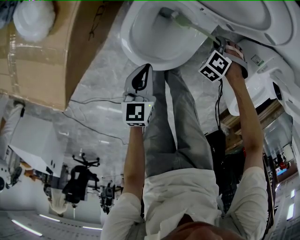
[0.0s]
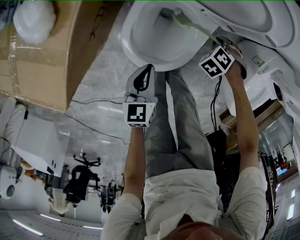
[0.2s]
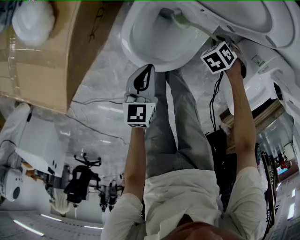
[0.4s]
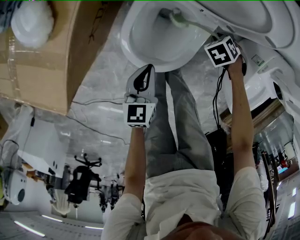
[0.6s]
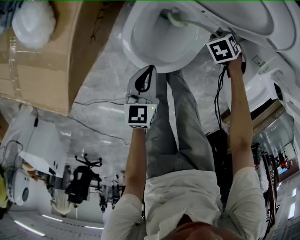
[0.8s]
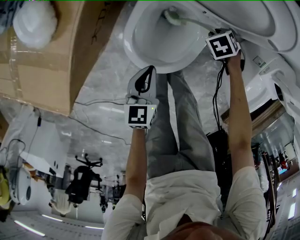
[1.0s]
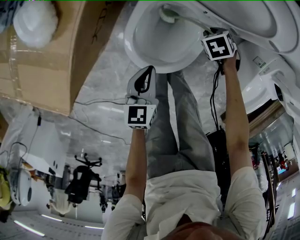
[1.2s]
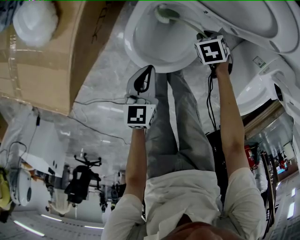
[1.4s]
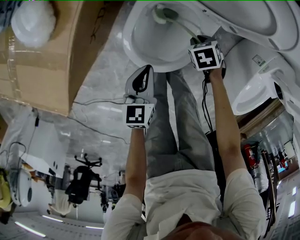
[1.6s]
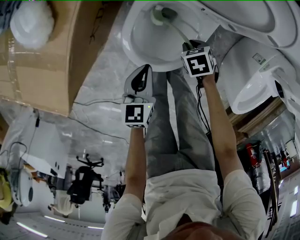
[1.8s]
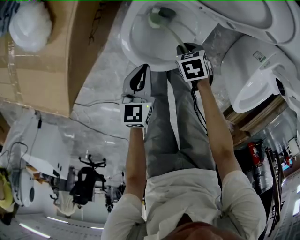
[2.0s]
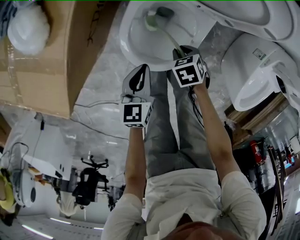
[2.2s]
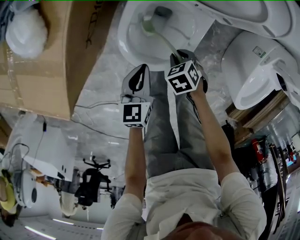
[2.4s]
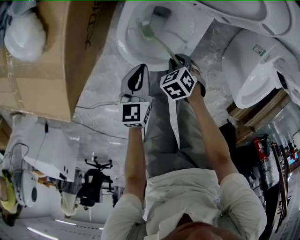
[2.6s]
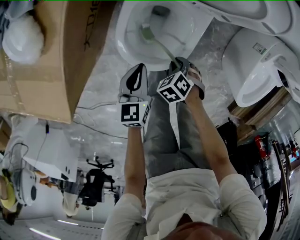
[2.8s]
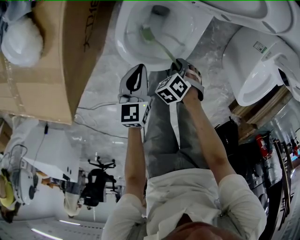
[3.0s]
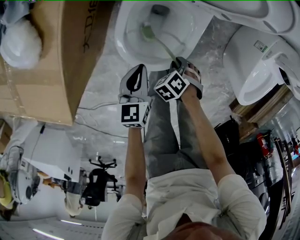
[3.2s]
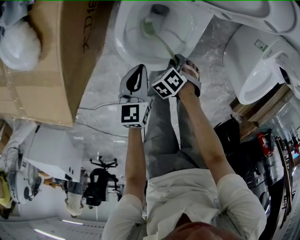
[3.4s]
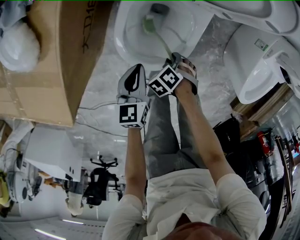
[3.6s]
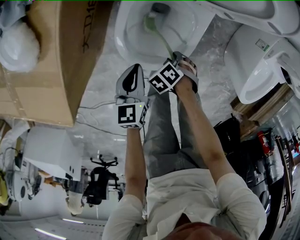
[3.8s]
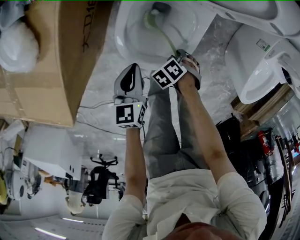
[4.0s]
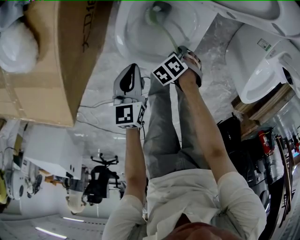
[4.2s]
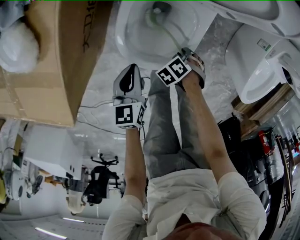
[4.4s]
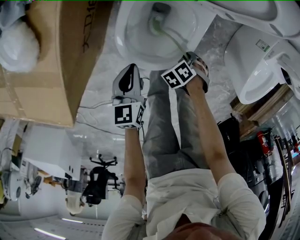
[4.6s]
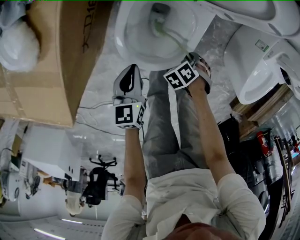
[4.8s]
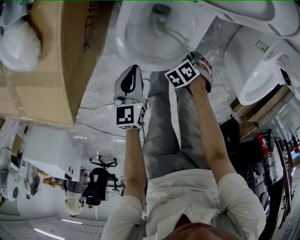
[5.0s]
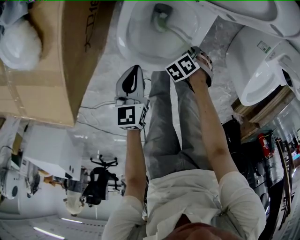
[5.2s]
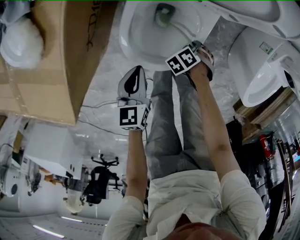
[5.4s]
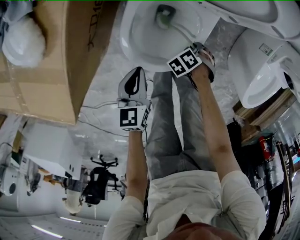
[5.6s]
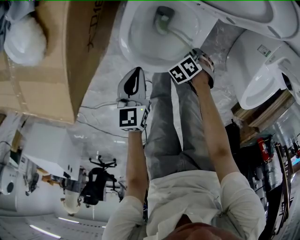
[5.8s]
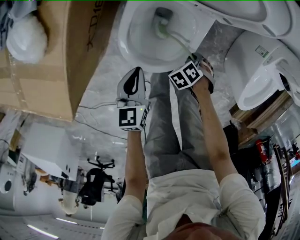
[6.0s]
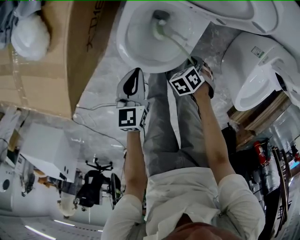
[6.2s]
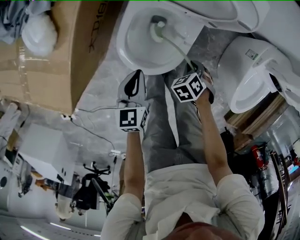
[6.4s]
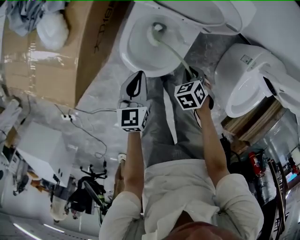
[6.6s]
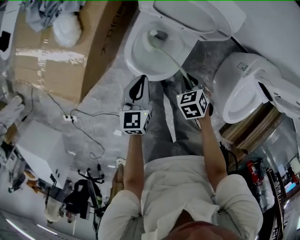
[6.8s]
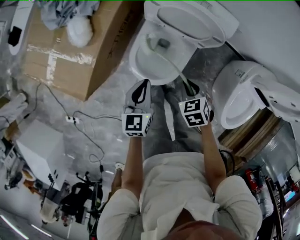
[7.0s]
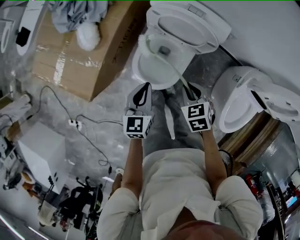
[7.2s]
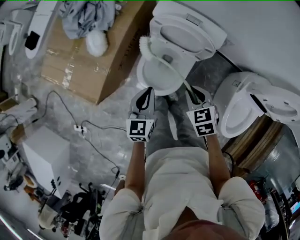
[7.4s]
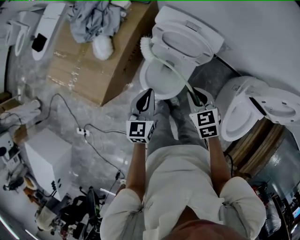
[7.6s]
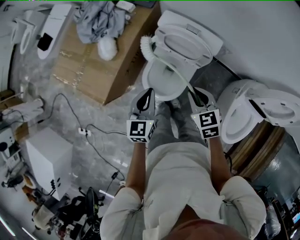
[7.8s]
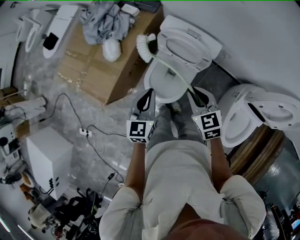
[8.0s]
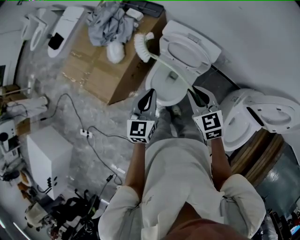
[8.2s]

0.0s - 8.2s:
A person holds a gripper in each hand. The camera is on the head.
0.0s - 1.6s: The right gripper moves roughly 10 cm, and rolls clockwise, seen from behind, by roughly 50 degrees.
1.6s - 3.2s: The right gripper moves some 15 cm.
3.2s - 5.0s: The right gripper changes place by approximately 10 cm.
5.0s - 6.6s: Both grippers move upward, approximately 15 cm. The right gripper turns by approximately 20 degrees.
6.6s - 8.2s: Both grippers move upward, some 30 cm. The right gripper tilts its fingers about 50 degrees upward.

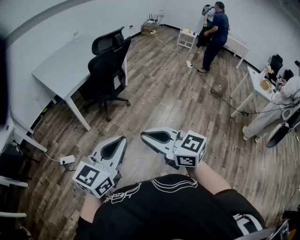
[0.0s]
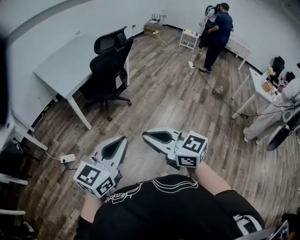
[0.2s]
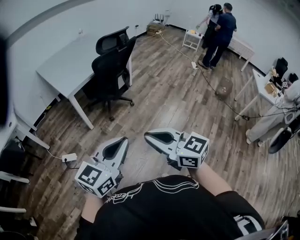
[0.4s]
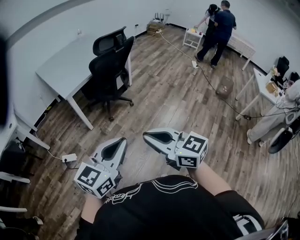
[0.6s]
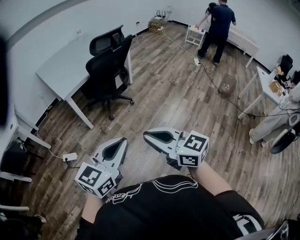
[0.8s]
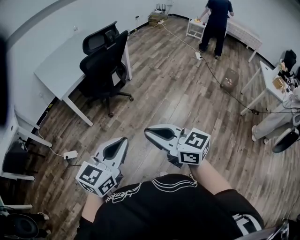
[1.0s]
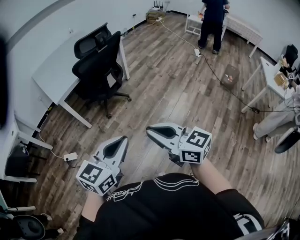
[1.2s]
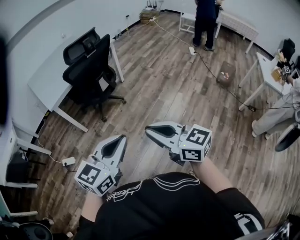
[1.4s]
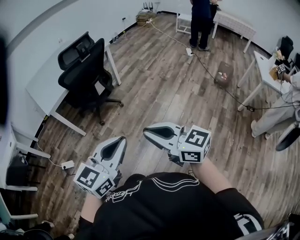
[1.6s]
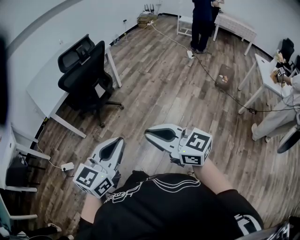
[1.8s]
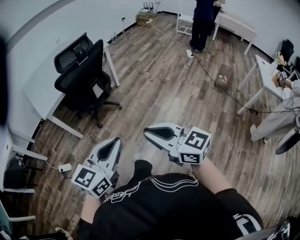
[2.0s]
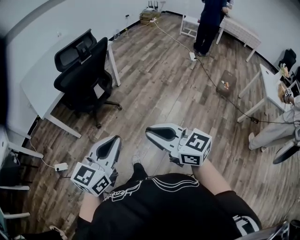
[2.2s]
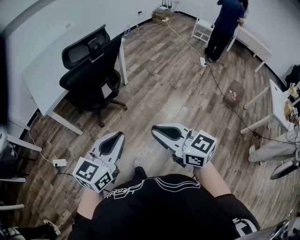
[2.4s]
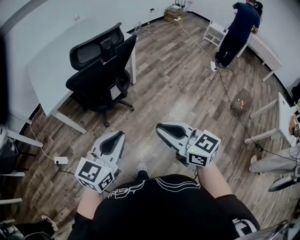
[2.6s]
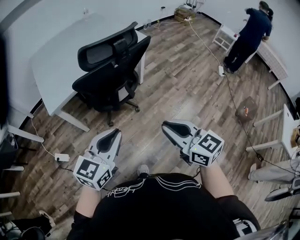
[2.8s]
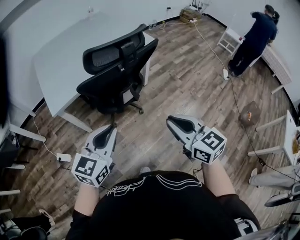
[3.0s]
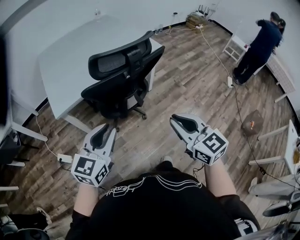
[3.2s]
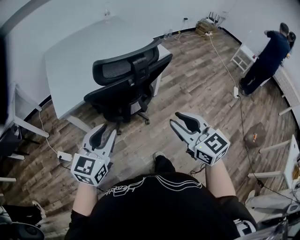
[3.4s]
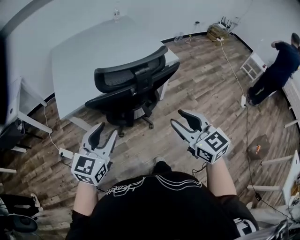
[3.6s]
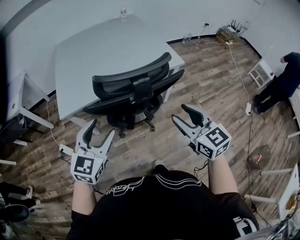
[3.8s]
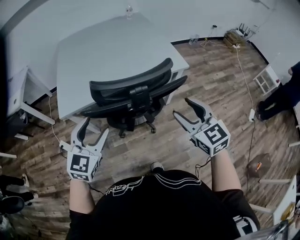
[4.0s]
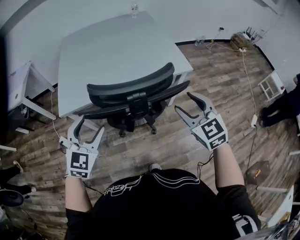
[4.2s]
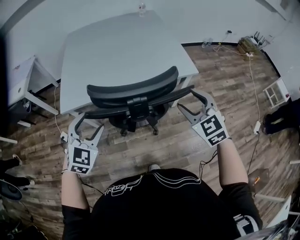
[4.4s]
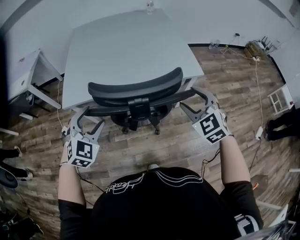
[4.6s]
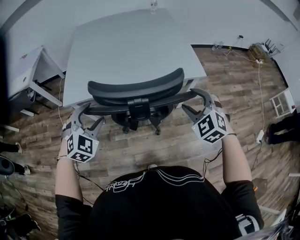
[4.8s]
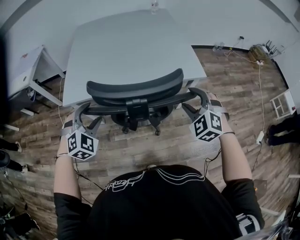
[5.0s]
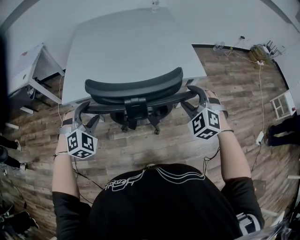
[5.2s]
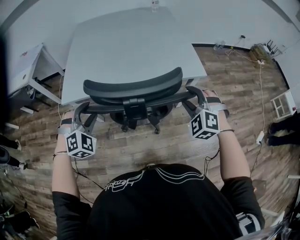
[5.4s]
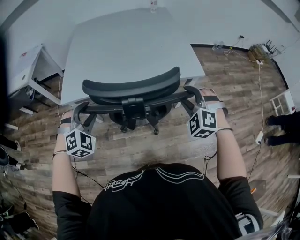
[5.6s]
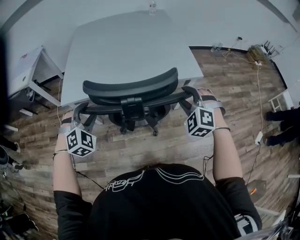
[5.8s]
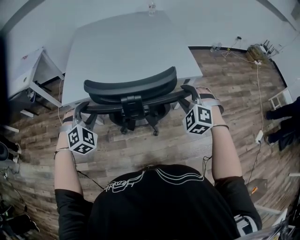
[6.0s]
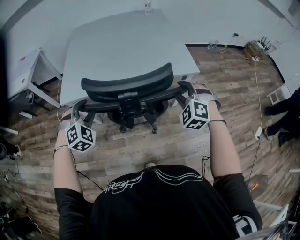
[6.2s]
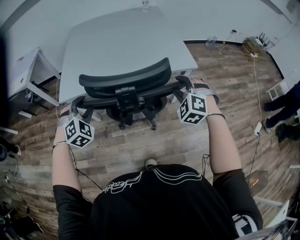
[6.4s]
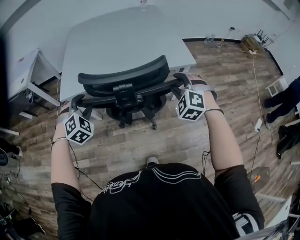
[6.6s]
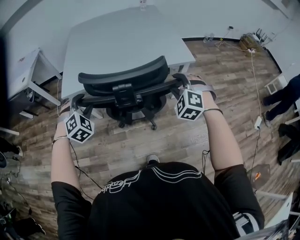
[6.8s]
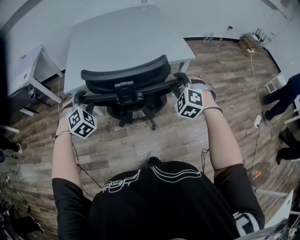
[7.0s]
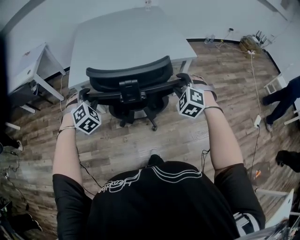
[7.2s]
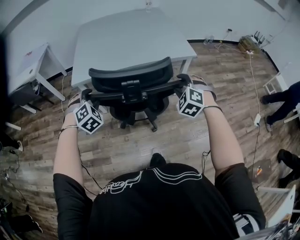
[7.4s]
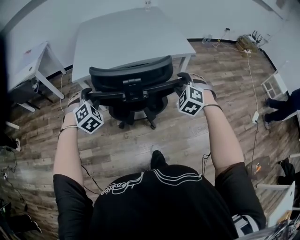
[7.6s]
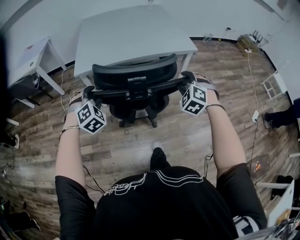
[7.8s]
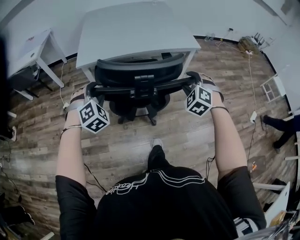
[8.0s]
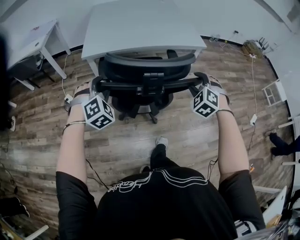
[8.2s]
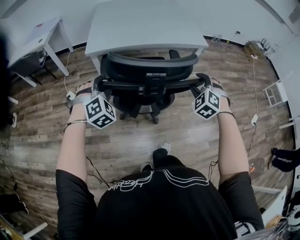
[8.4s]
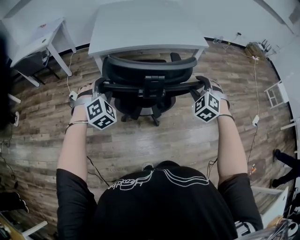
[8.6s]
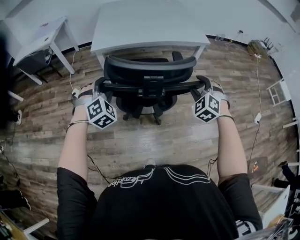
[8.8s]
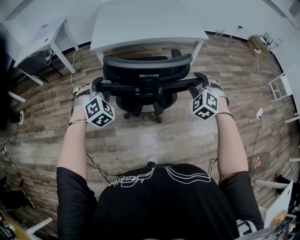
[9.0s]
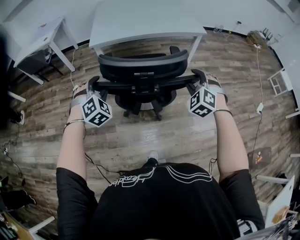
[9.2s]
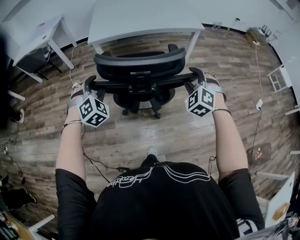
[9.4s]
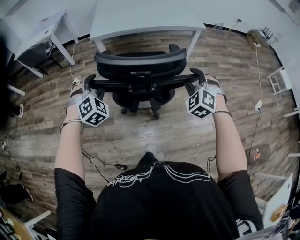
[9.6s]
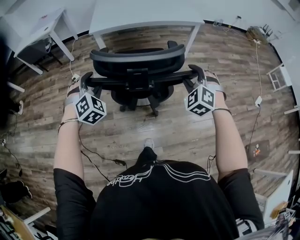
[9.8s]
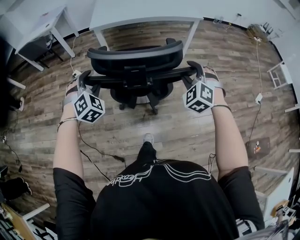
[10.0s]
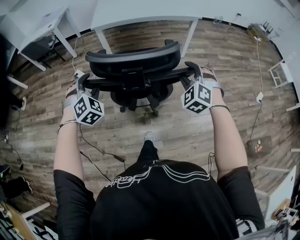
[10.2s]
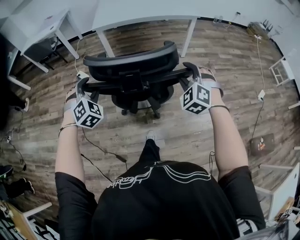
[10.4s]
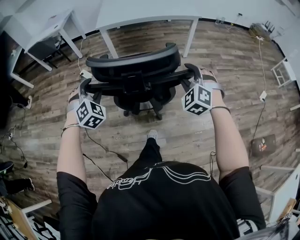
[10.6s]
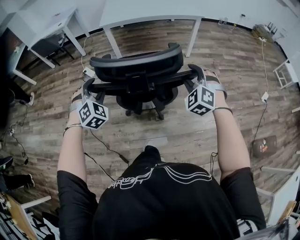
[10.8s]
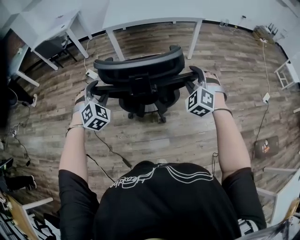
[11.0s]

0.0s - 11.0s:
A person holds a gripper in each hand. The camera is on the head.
0.0s - 1.6s: The two grippers go some 30 cm to the right.
1.6s - 3.2s: The two grippers travel together, forward, approximately 50 cm. The left gripper turns by about 30 degrees.
3.2s - 4.8s: The left gripper moves forward, roughly 20 cm, turns by some 50 degrees, and opens its fingers, while the right gripper goes approximately 35 cm forward and to the right, rolls counterclockwise, seen from behind, by approximately 50 degrees, and opens up.
4.8s - 6.2s: The grippers make only small movements.
6.2s - 7.8s: The two grippers go approximately 20 cm backward.
7.8s - 9.4s: The grippers both shift backward by some 15 cm.
9.4s - 11.0s: The two grippers go roughly 20 cm backward.

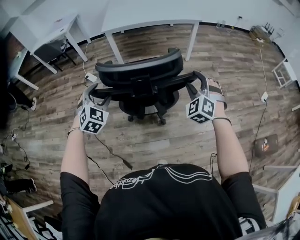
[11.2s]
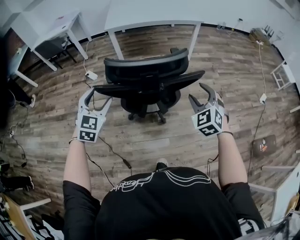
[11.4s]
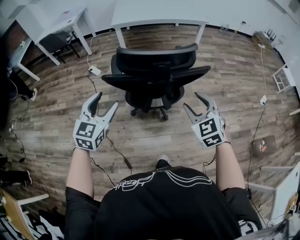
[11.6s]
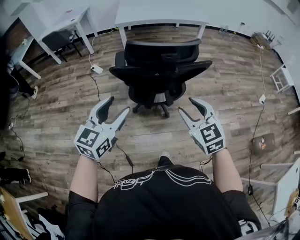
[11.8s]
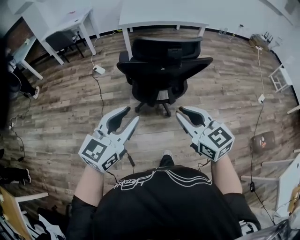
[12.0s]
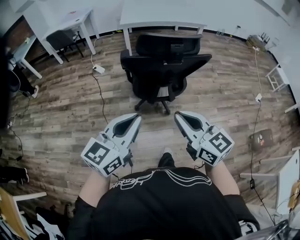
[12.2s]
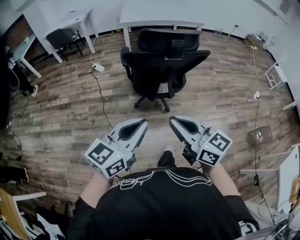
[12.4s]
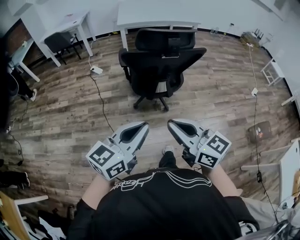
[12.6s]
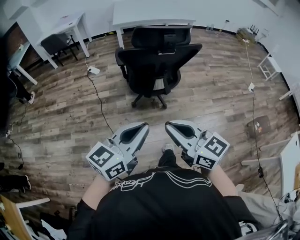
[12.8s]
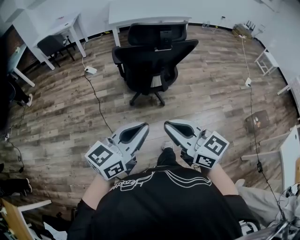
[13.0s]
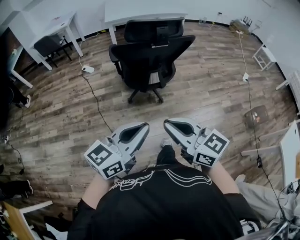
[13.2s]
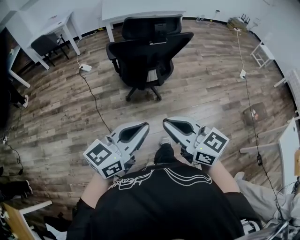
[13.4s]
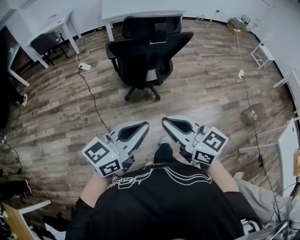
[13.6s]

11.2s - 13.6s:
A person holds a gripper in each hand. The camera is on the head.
11.2s - 12.4s: The left gripper is displaced backward by roughly 40 cm, swivels some 70 degrees, and closes. Meanwhile the right gripper is displaced backward and to the left by about 50 cm, turns by approximately 80 degrees, and closes.
12.4s - 13.6s: The two grippers go about 10 cm backward.

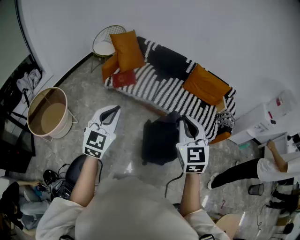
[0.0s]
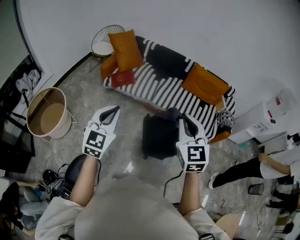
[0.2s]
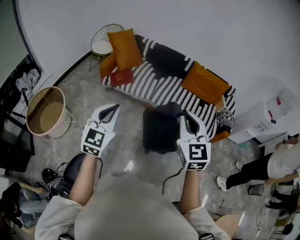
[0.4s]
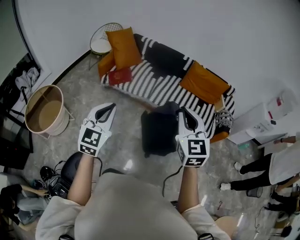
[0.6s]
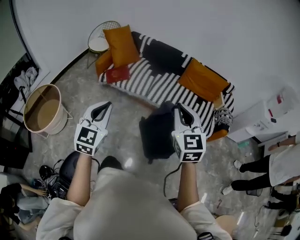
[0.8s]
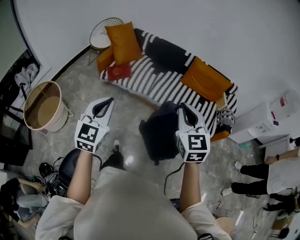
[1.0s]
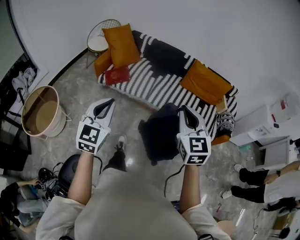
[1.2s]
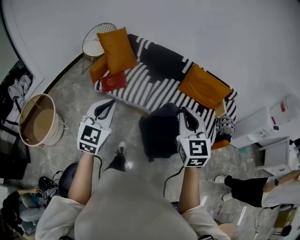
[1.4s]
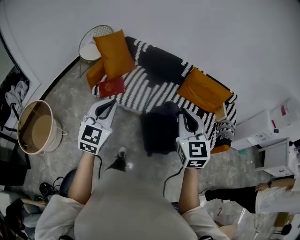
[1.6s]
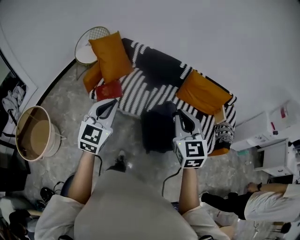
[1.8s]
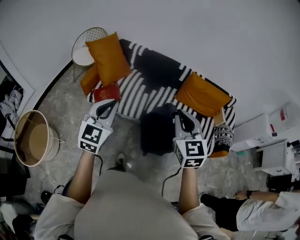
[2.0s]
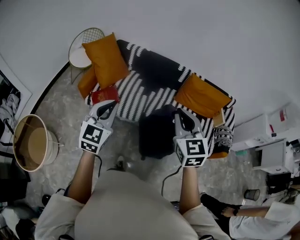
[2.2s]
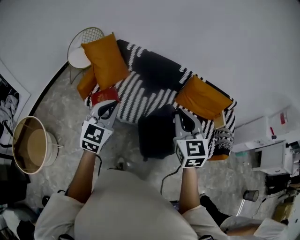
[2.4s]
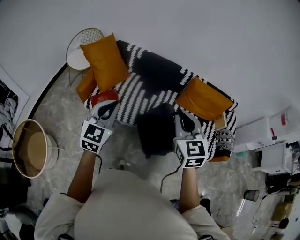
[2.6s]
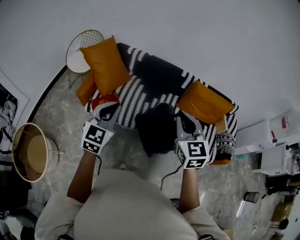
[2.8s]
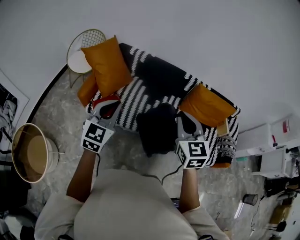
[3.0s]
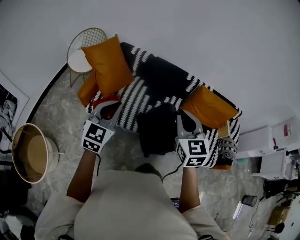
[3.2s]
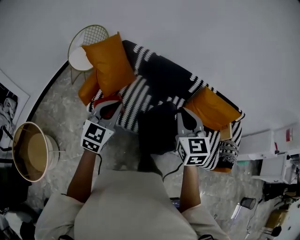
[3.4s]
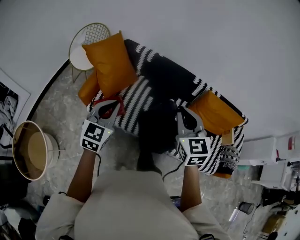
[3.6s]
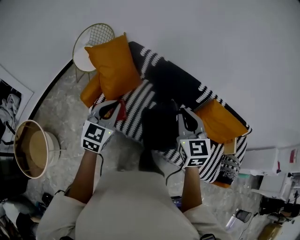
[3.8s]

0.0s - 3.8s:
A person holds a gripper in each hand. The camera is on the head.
0.0s - 1.2s: The grippers both shift forward and to the right by roughly 15 cm.
1.2s - 2.6s: The grippers both shift forward by approximately 40 cm.
2.6s - 3.8s: The grippers both shift forward by approximately 25 cm.
